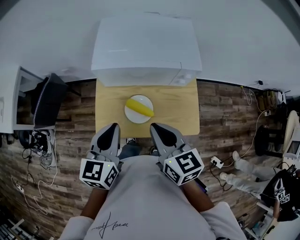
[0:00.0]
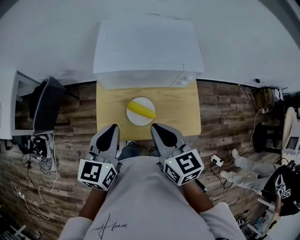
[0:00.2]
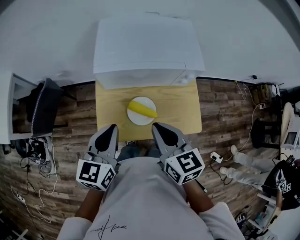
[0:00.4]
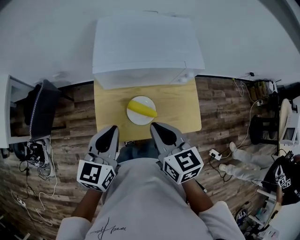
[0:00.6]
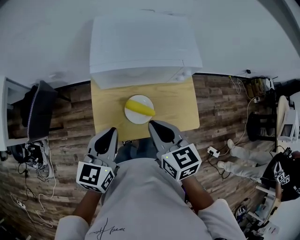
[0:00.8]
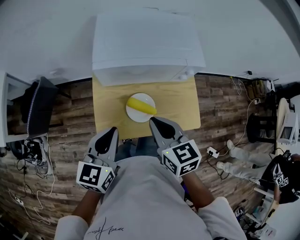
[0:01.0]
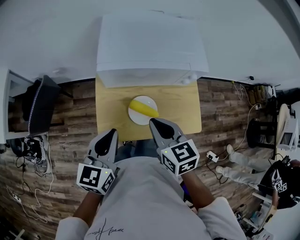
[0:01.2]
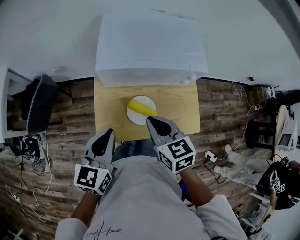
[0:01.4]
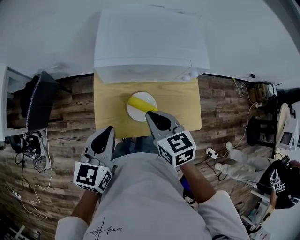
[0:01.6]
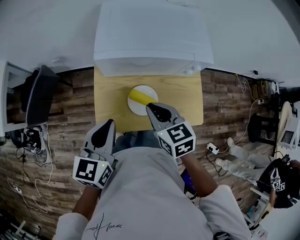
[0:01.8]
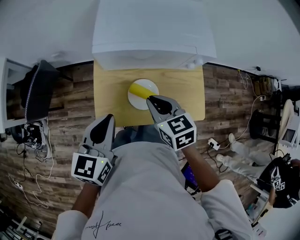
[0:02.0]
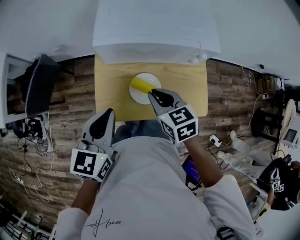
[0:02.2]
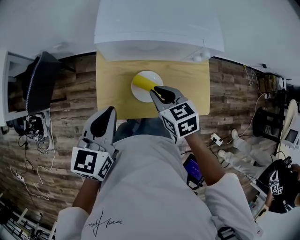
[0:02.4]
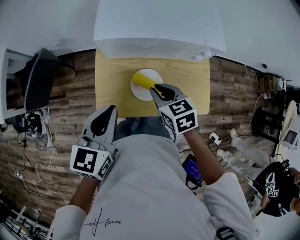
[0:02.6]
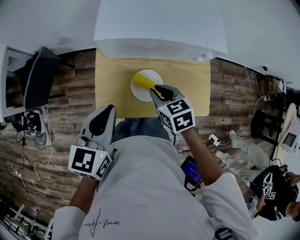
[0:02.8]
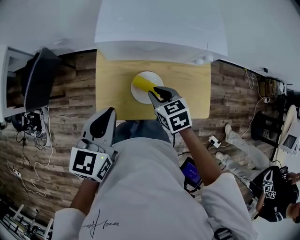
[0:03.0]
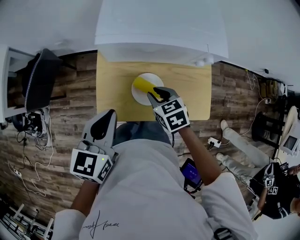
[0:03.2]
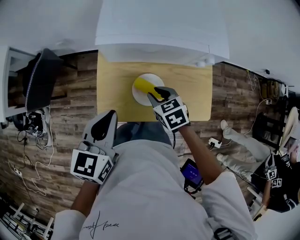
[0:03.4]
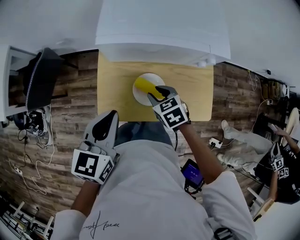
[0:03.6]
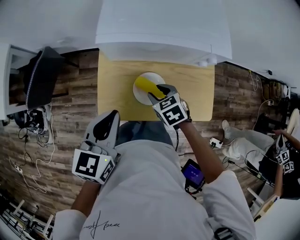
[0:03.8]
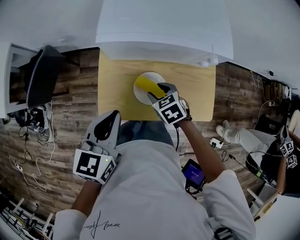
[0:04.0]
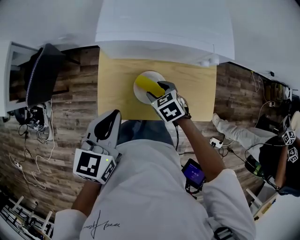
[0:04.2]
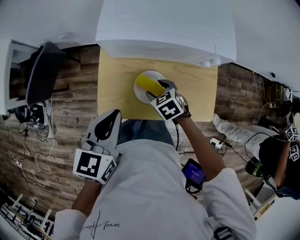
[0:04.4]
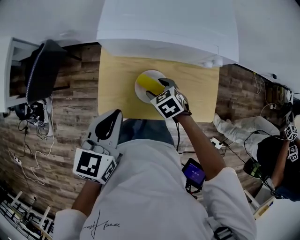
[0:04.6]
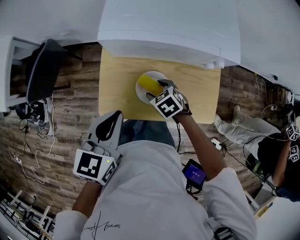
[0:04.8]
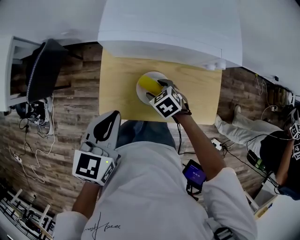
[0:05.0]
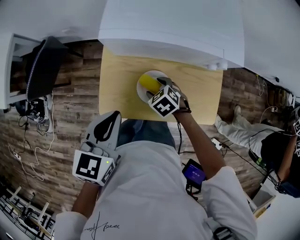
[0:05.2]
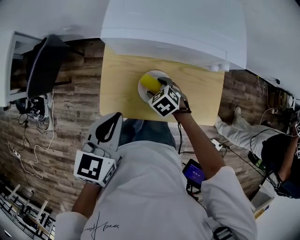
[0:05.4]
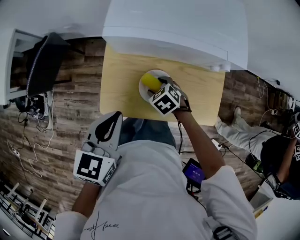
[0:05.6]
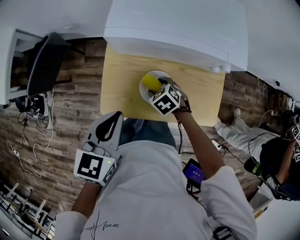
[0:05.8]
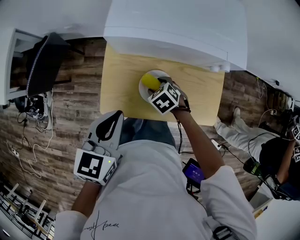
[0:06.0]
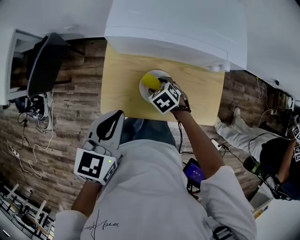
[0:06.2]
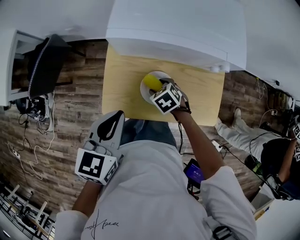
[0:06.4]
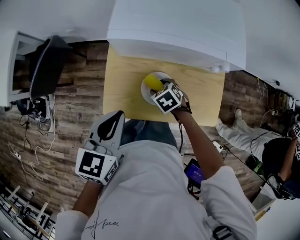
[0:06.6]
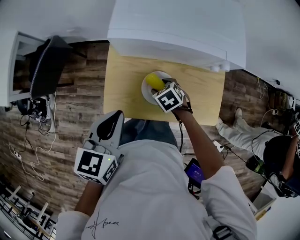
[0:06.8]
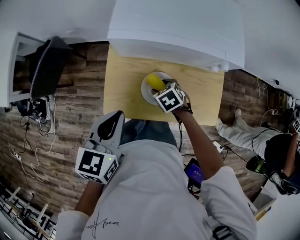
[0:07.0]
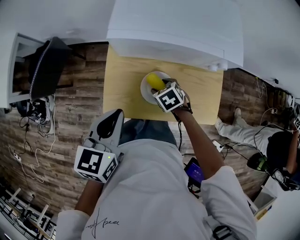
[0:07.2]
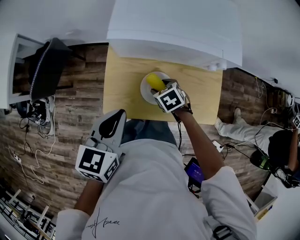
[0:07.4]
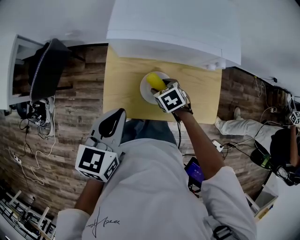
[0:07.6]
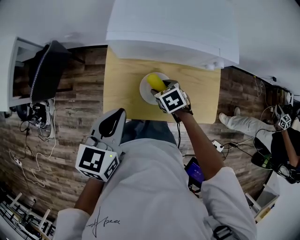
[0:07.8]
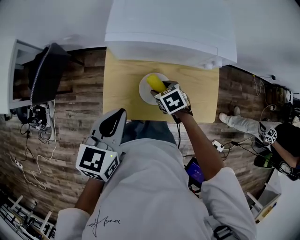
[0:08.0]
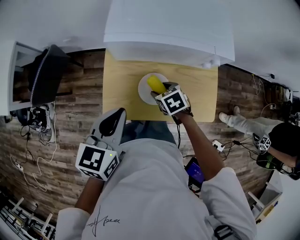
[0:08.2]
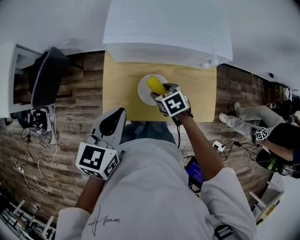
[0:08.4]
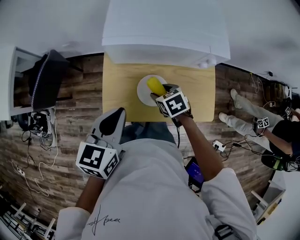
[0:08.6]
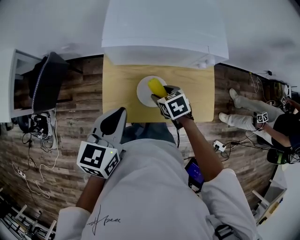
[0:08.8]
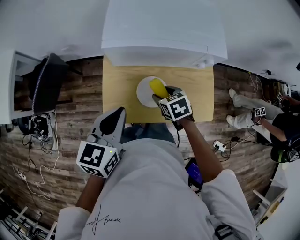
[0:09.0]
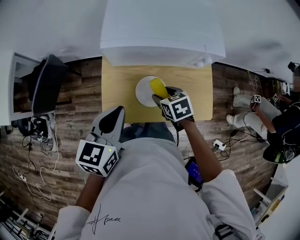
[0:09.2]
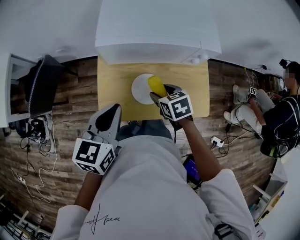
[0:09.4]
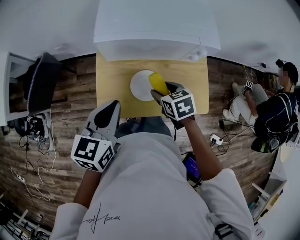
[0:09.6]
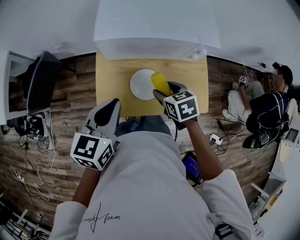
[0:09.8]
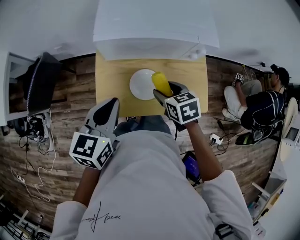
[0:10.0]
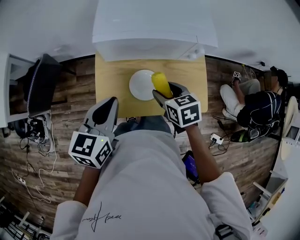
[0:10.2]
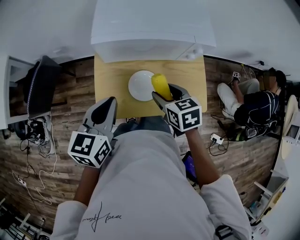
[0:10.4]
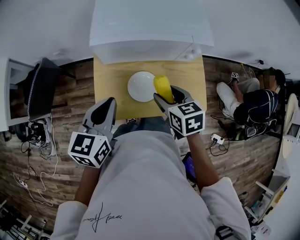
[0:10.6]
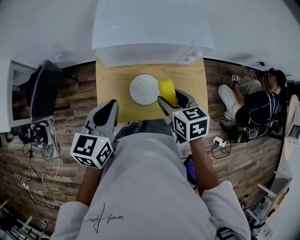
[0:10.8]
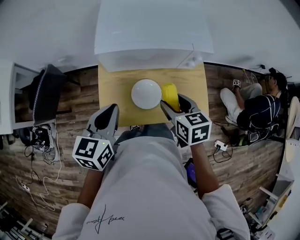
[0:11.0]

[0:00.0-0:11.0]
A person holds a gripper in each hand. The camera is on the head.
0:00.0 to 0:01.6: The left gripper shifts roughly 5 cm to the left, while the right gripper moves downward, to the left and forward, roughly 10 cm.
0:01.6 to 0:03.2: The right gripper goes roughly 15 cm downward.
0:03.2 to 0:04.8: The right gripper heads downward, covering roughly 10 cm, turns by approximately 20 degrees, and opens its fingers.
0:04.8 to 0:07.8: The grippers move only a little.
0:07.8 to 0:09.4: The right gripper shifts roughly 5 cm upward.
0:09.4 to 0:11.0: The right gripper travels upward by some 10 cm.

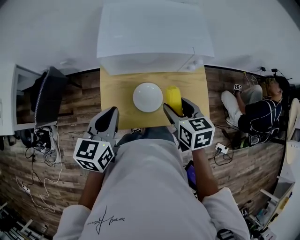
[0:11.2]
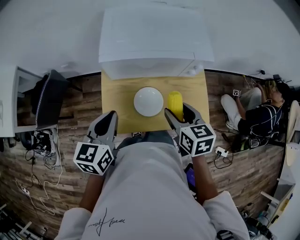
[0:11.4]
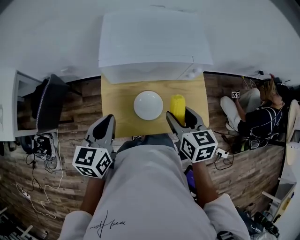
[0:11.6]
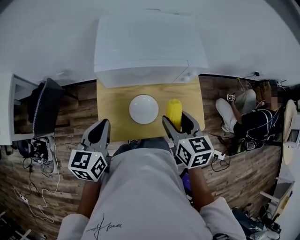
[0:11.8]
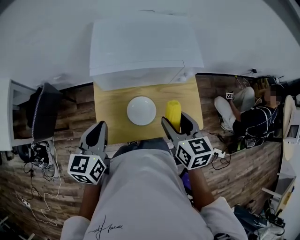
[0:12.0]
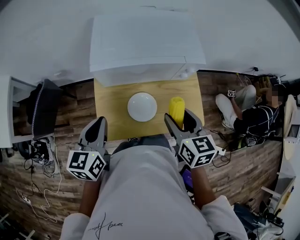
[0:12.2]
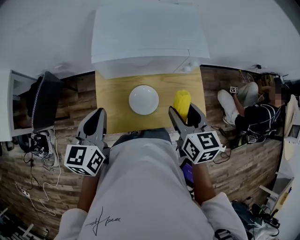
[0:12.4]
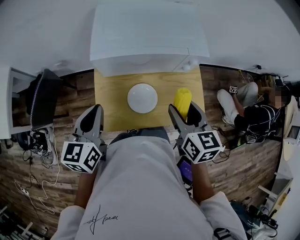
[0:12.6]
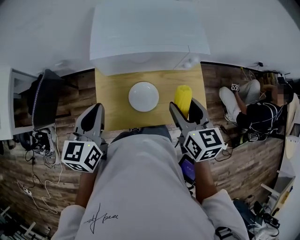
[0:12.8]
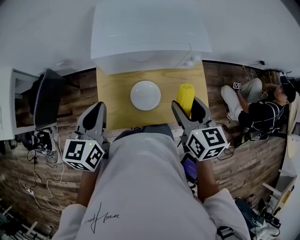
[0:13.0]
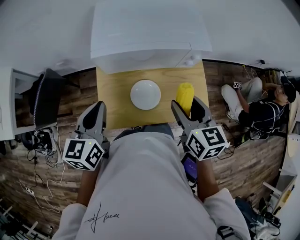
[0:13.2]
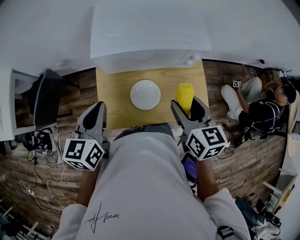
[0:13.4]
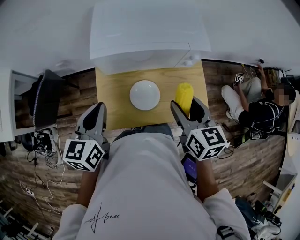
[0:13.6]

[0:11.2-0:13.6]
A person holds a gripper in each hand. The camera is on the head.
0:11.2 to 0:12.4: The right gripper travels upward by approximately 5 cm.
0:12.4 to 0:13.6: Neither gripper changes place.

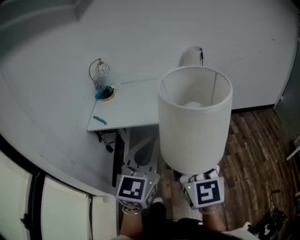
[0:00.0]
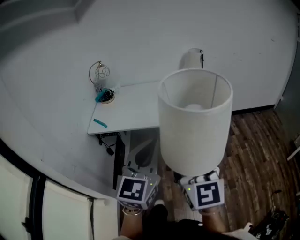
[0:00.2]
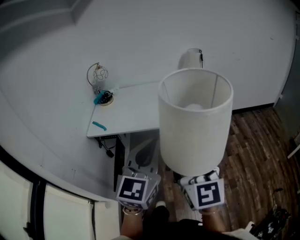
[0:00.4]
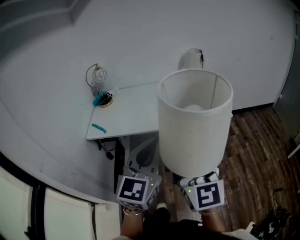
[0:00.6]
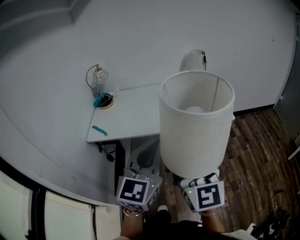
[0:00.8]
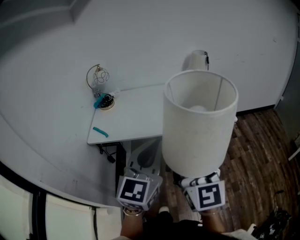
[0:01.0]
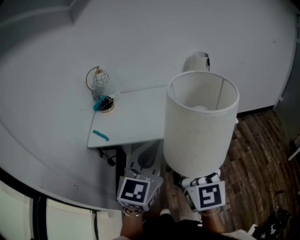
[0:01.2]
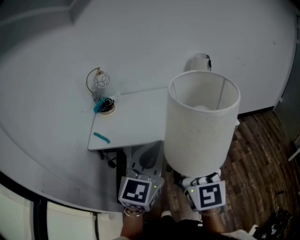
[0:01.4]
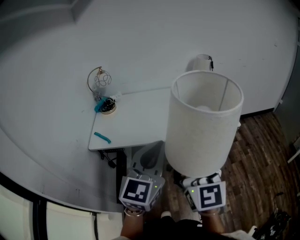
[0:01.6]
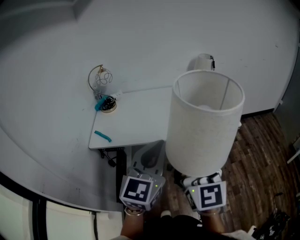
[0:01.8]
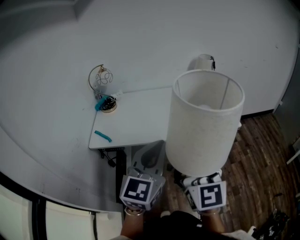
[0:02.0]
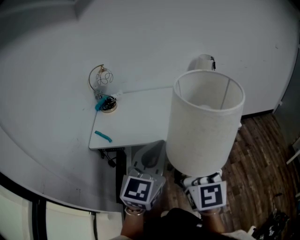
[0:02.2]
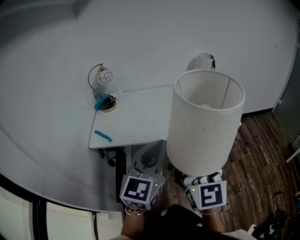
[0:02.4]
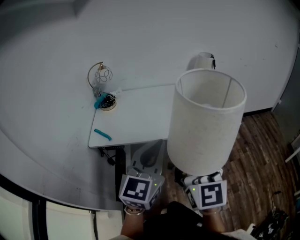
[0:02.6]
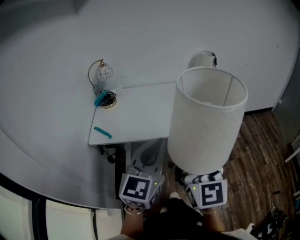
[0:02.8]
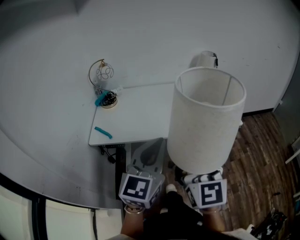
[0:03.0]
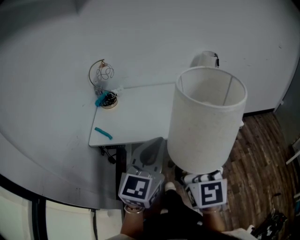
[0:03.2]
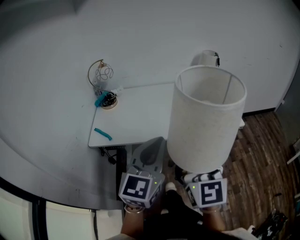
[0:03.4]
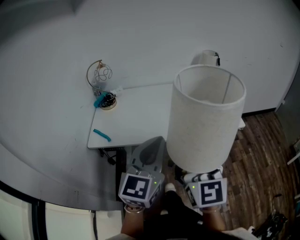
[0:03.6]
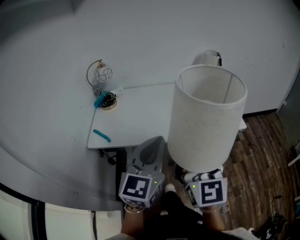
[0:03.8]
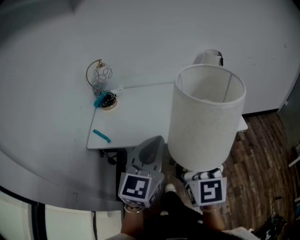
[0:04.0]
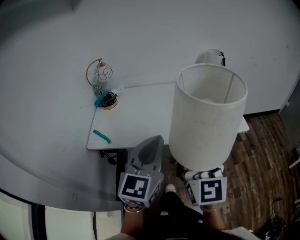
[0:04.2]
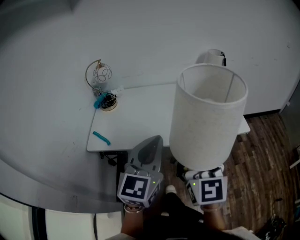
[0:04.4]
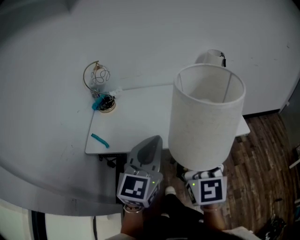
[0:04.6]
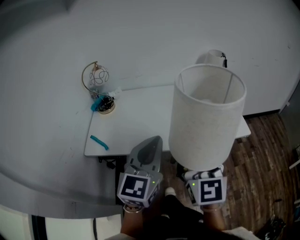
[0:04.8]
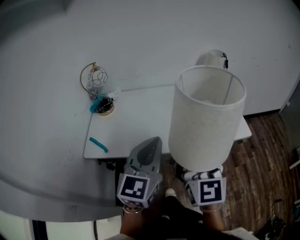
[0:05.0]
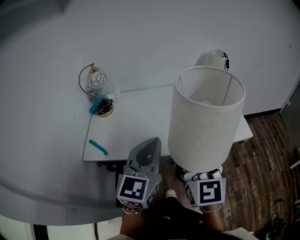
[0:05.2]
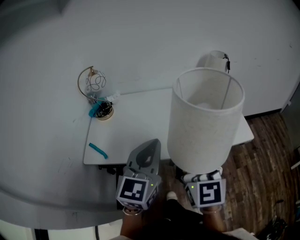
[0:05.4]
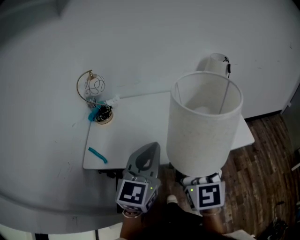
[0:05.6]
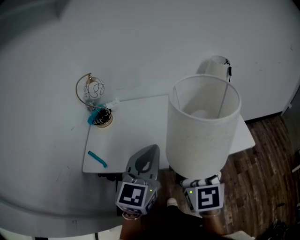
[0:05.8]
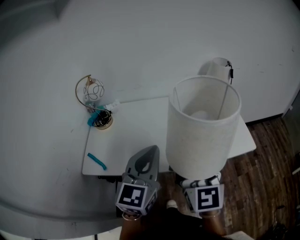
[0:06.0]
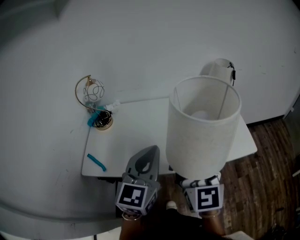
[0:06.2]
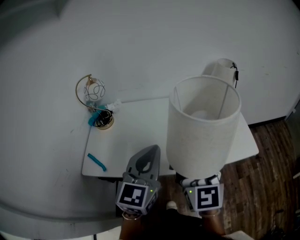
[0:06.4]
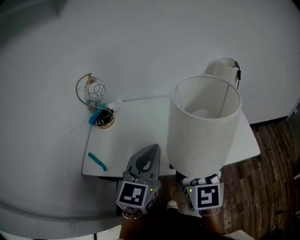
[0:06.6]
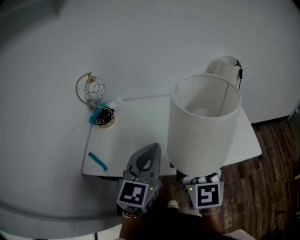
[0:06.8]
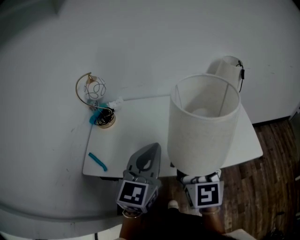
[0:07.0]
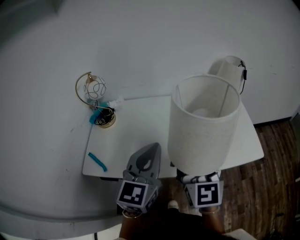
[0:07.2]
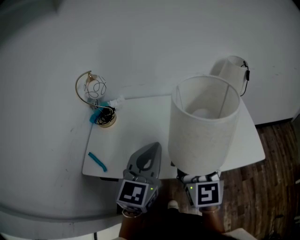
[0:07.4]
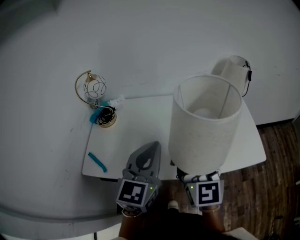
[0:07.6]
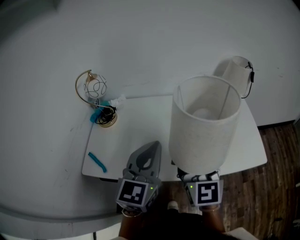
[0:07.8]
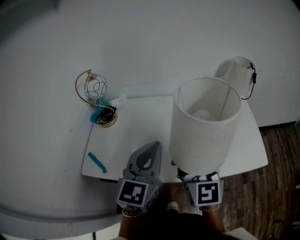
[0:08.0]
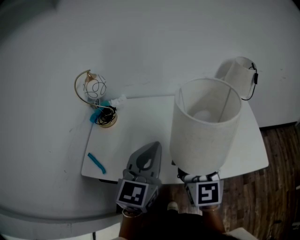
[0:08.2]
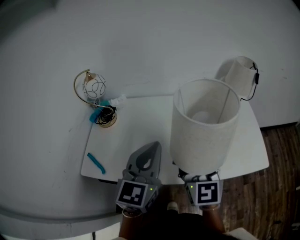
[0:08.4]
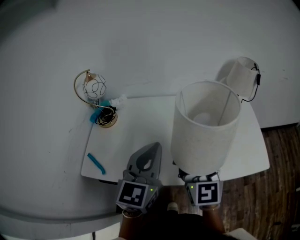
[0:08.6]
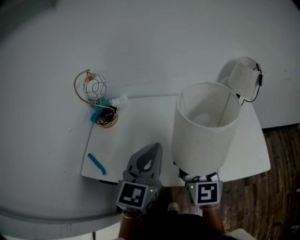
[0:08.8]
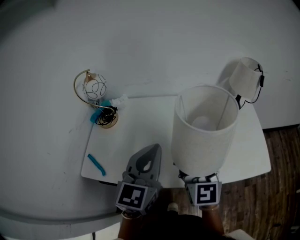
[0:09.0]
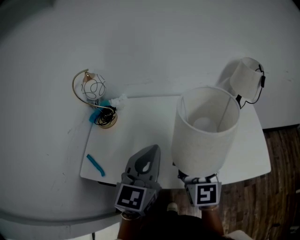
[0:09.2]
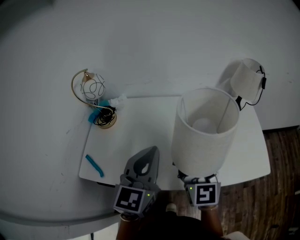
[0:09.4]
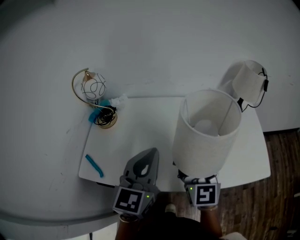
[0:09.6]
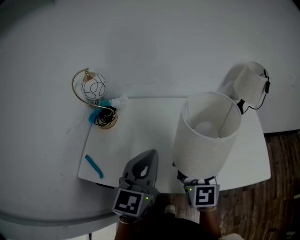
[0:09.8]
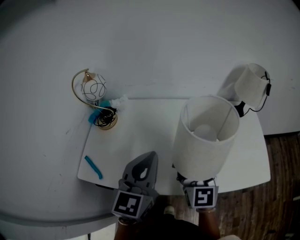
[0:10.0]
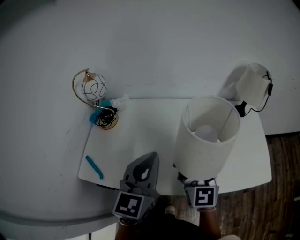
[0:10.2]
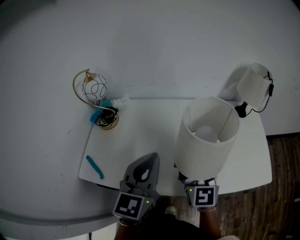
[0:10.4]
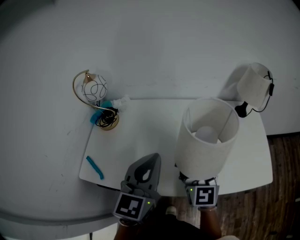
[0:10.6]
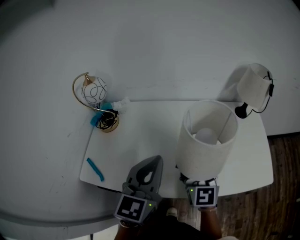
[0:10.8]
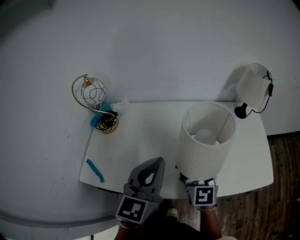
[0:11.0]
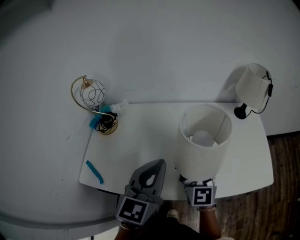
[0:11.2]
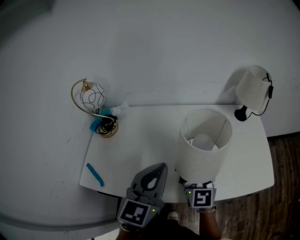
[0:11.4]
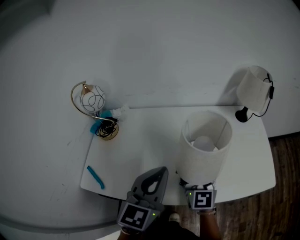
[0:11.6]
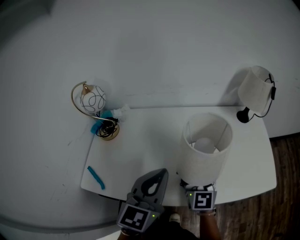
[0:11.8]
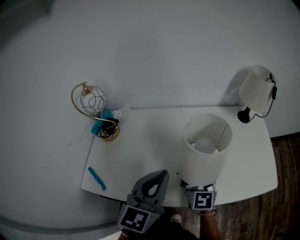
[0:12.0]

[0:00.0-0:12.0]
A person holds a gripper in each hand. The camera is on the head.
0:00.0 to 0:01.6: The grippers both shift forward and to the left by approximately 15 cm.
0:01.6 to 0:03.0: The grippers stay close to where they were, moving slightly.
0:03.0 to 0:04.4: The two grippers go roughly 10 cm forward.
0:04.4 to 0:06.0: The two grippers go about 15 cm forward.
0:06.0 to 0:07.6: The grippers both shift forward by approximately 10 cm.
0:07.6 to 0:09.0: The left gripper moves about 5 cm, while the right gripper is displaced forward by about 5 cm.
0:09.0 to 0:10.4: The right gripper changes place by roughly 5 cm.
0:10.4 to 0:12.0: The right gripper shifts by approximately 5 cm.
